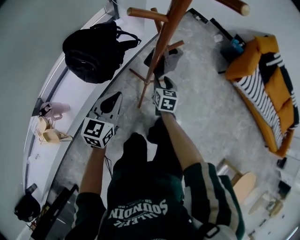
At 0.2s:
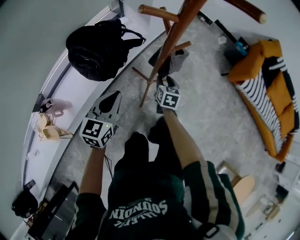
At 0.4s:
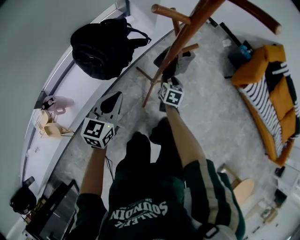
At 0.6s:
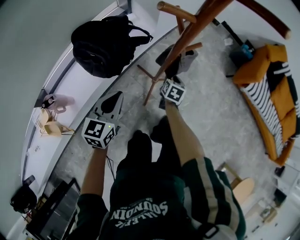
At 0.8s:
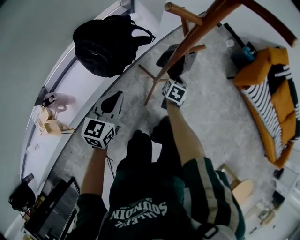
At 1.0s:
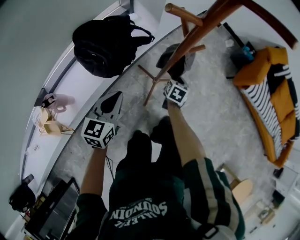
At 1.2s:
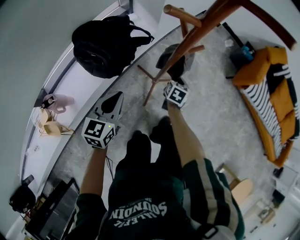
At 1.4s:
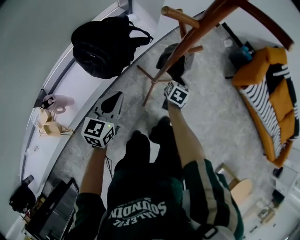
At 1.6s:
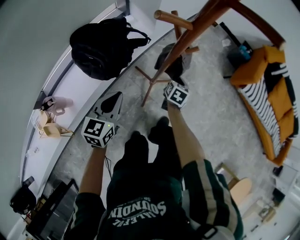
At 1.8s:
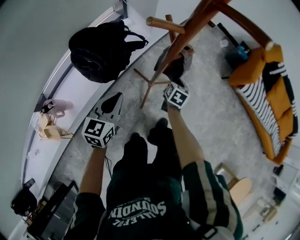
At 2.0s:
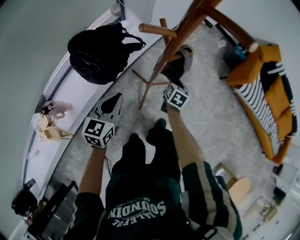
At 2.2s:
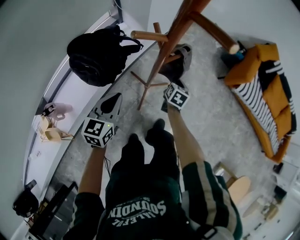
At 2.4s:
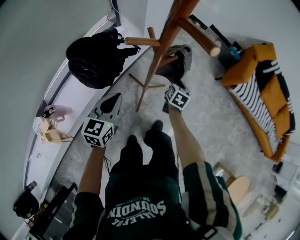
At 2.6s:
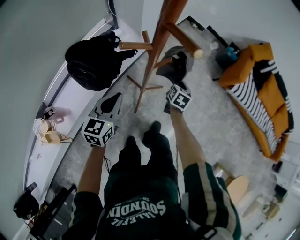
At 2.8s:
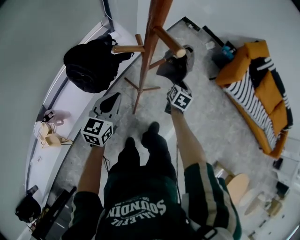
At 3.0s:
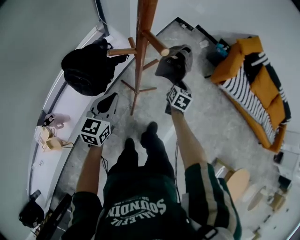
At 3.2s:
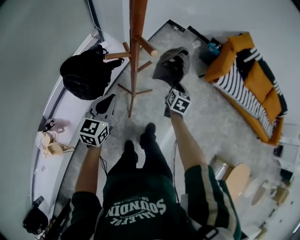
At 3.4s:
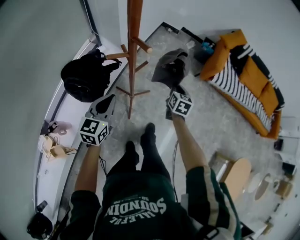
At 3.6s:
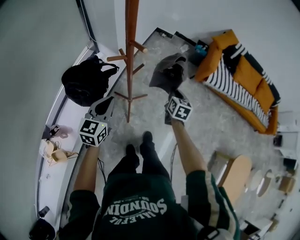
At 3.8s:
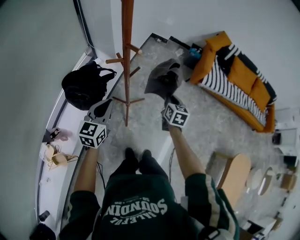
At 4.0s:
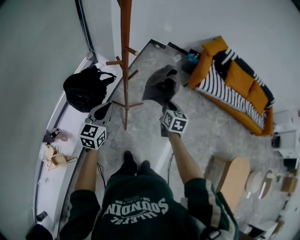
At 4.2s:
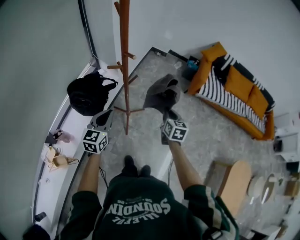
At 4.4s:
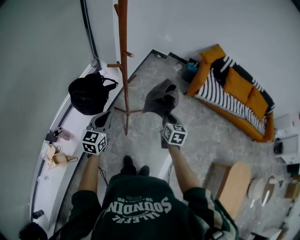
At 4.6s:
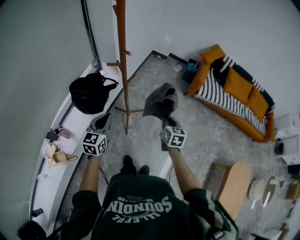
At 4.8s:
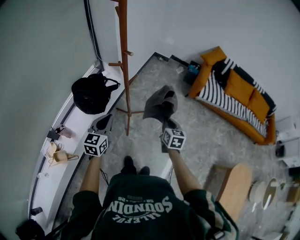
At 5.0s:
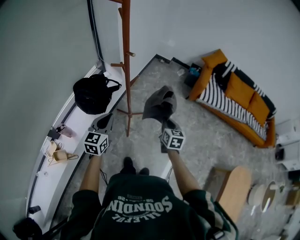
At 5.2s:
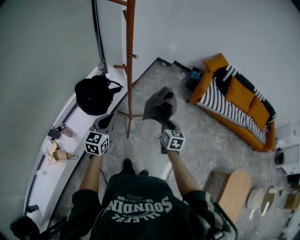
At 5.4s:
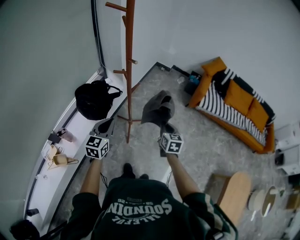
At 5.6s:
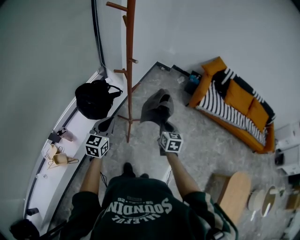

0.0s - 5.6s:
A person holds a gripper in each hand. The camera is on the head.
0.0s - 1.4s: The right gripper changes place by about 5 cm, and closes up.
1.4s - 2.8s: The left gripper is displaced upward, forward and to the right by approximately 15 cm. The right gripper shifts roughly 15 cm upward and to the right.
2.8s - 4.2s: The right gripper is displaced upward and backward by roughly 30 cm. Meanwhile the left gripper heads upward and backward, covering approximately 20 cm.
4.2s - 5.6s: The two grippers go some 5 cm backward.

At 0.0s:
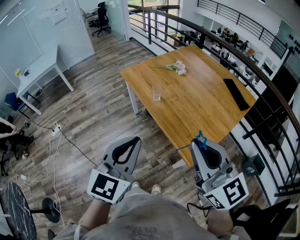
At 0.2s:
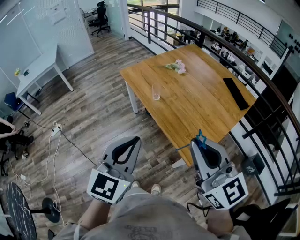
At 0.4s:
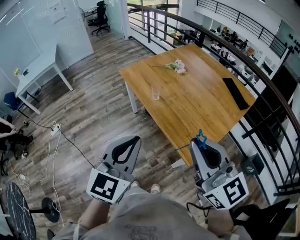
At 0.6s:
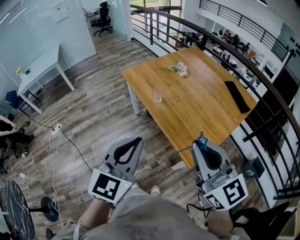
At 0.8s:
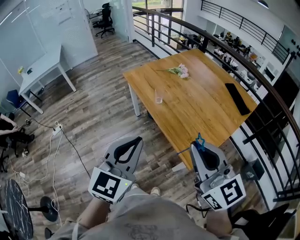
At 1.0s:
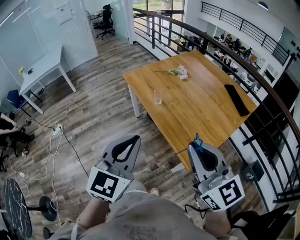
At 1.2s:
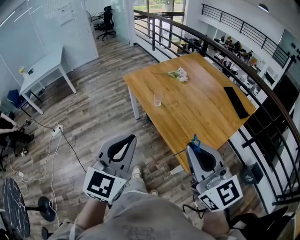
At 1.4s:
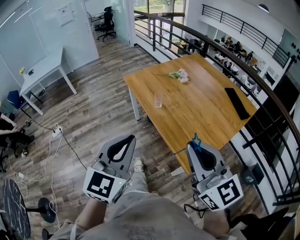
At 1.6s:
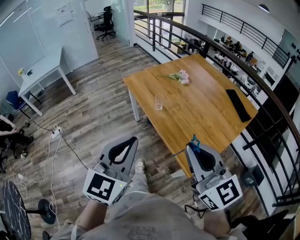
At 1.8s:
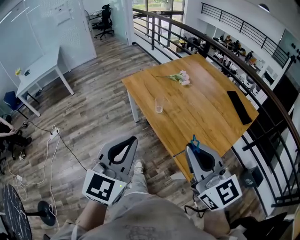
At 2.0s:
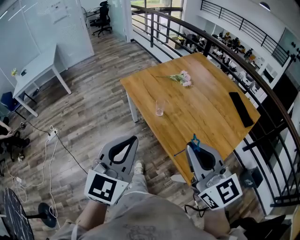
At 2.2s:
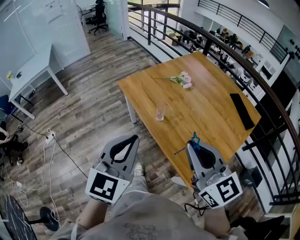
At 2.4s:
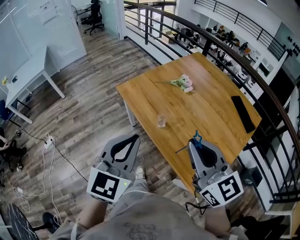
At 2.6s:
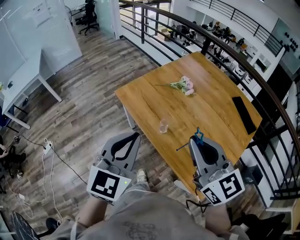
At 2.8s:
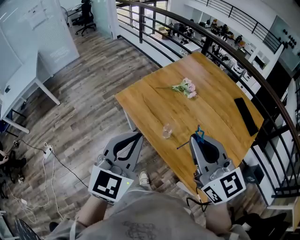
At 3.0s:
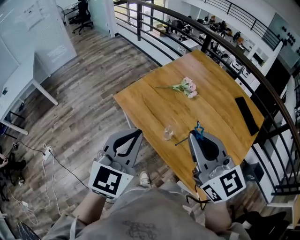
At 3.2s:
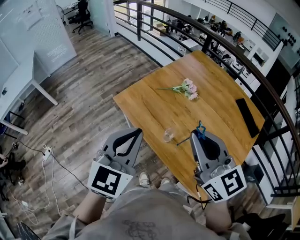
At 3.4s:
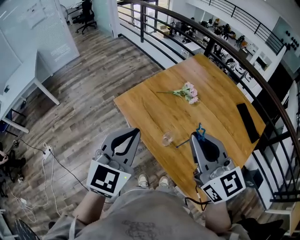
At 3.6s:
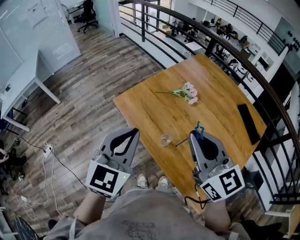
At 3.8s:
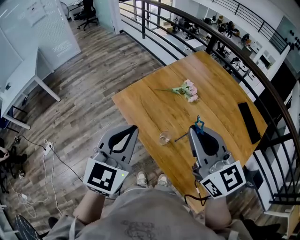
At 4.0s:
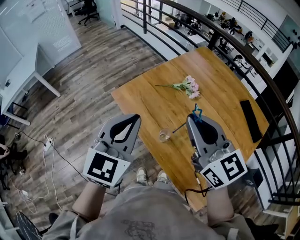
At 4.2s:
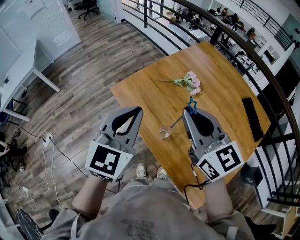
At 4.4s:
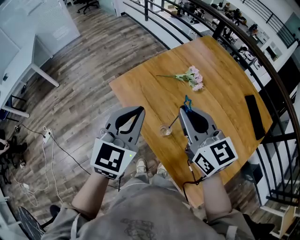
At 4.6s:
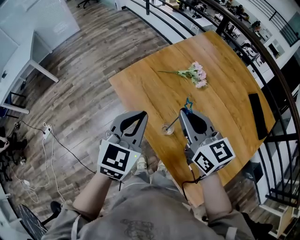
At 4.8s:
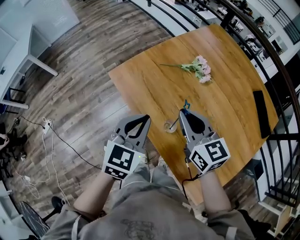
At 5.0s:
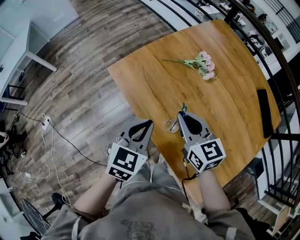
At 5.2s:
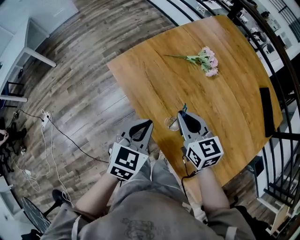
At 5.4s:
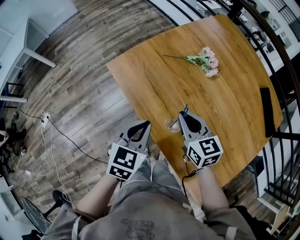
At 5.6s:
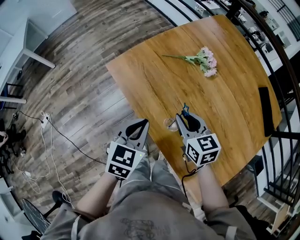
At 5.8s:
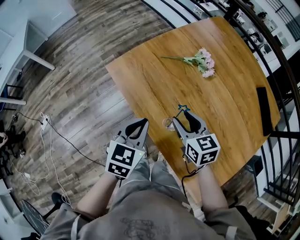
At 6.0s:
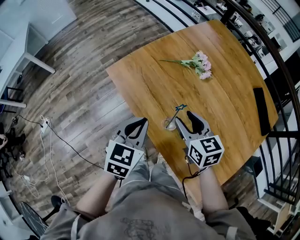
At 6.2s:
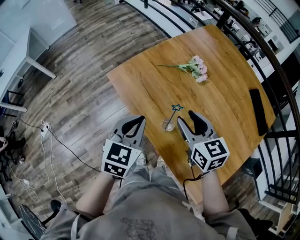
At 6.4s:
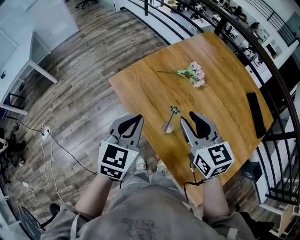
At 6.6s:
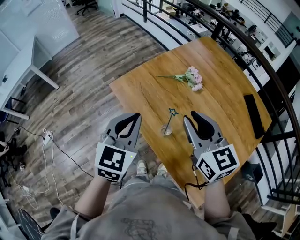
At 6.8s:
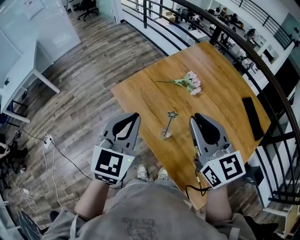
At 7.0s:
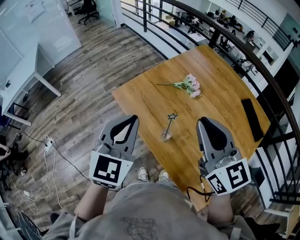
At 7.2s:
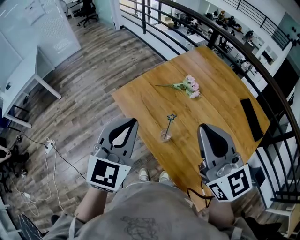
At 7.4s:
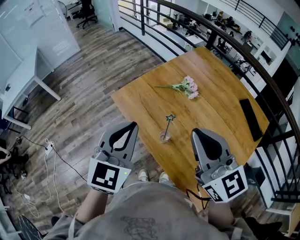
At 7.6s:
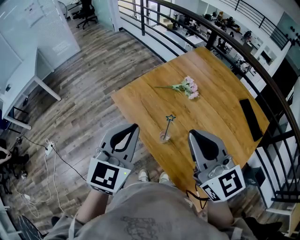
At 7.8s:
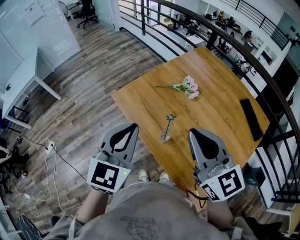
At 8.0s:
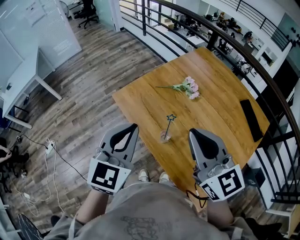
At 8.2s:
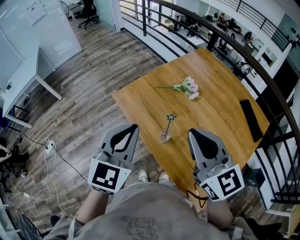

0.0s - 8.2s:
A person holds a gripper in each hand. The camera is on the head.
0.0s - 1.6s: There are only small adjustments of the grippers.
1.6s - 3.2s: Both grippers travel together forward, roughly 20 cm.
3.2s - 5.0s: The left gripper is displaced downward by roughly 15 cm, and rotates about 20 degrees. Meanwhile the right gripper heads downward and forward, covering some 20 cm, and turns by some 20 degrees.
5.0s - 6.6s: The two grippers go some 10 cm upward. The right gripper opens up.
6.6s - 8.2s: The right gripper shifts roughly 10 cm upward and backward, and closes its fingers. The left gripper heads upward, covering some 5 cm.

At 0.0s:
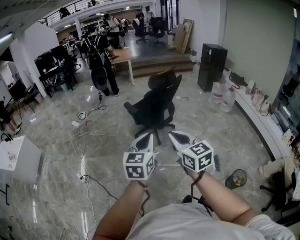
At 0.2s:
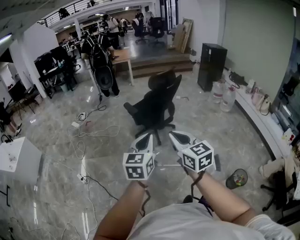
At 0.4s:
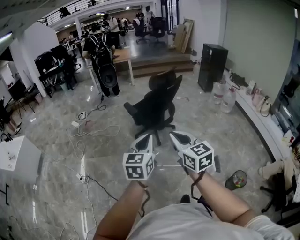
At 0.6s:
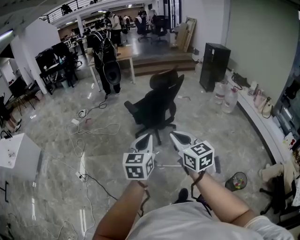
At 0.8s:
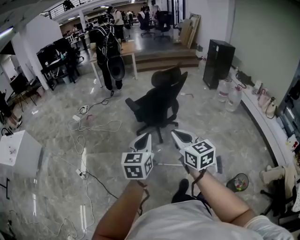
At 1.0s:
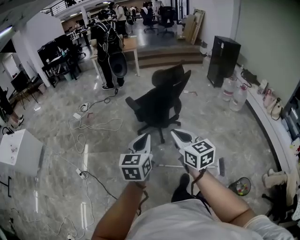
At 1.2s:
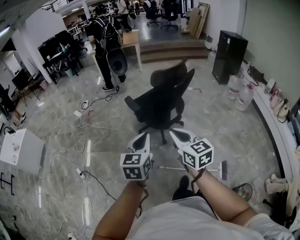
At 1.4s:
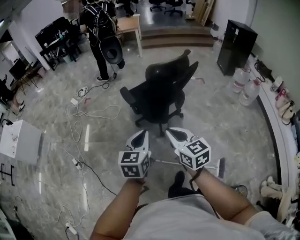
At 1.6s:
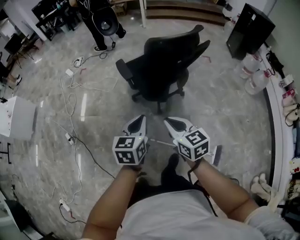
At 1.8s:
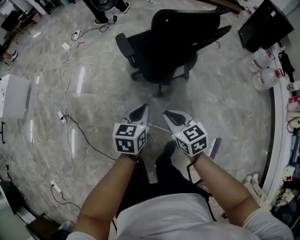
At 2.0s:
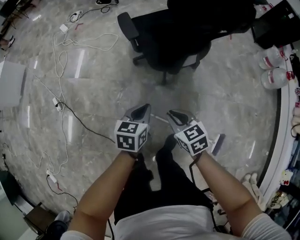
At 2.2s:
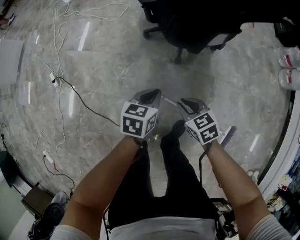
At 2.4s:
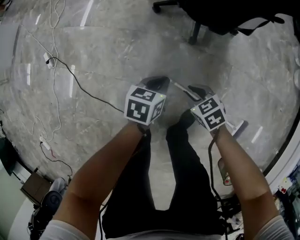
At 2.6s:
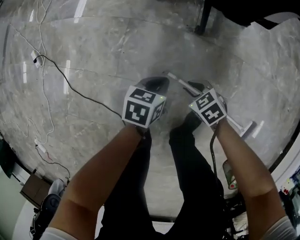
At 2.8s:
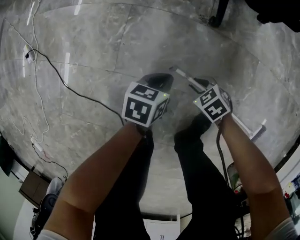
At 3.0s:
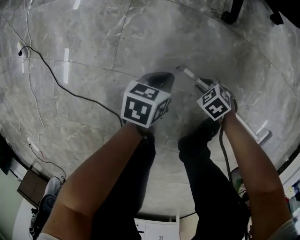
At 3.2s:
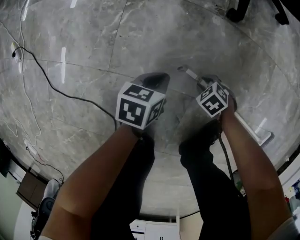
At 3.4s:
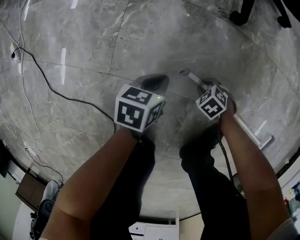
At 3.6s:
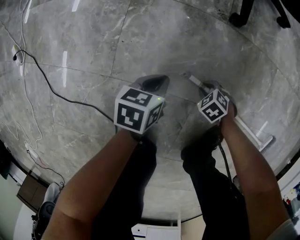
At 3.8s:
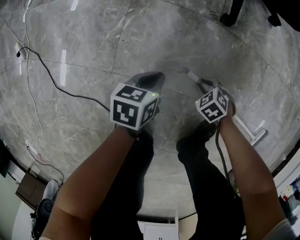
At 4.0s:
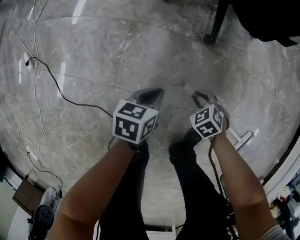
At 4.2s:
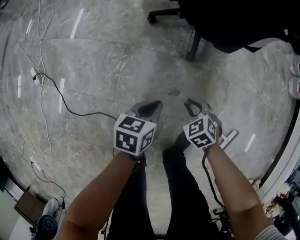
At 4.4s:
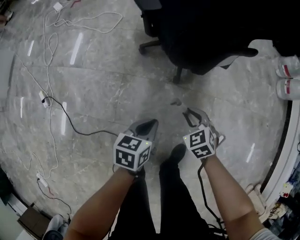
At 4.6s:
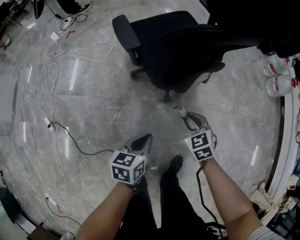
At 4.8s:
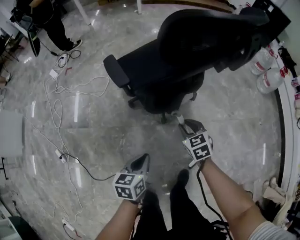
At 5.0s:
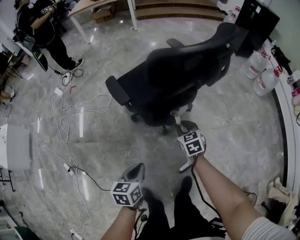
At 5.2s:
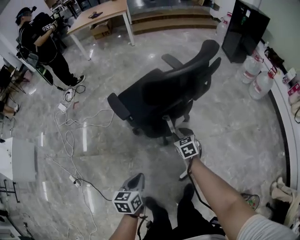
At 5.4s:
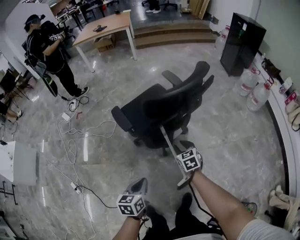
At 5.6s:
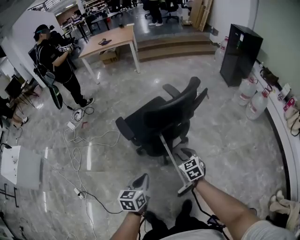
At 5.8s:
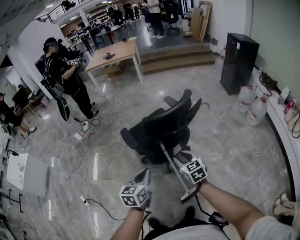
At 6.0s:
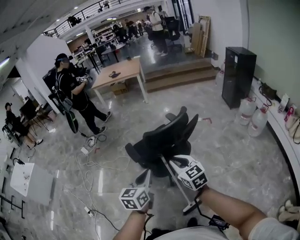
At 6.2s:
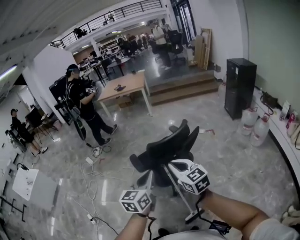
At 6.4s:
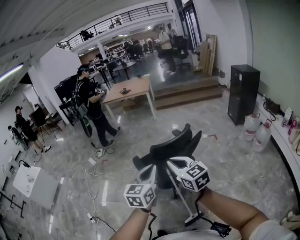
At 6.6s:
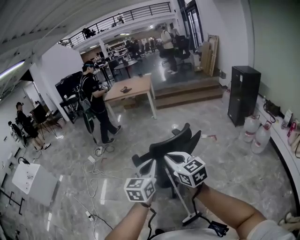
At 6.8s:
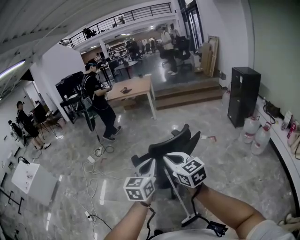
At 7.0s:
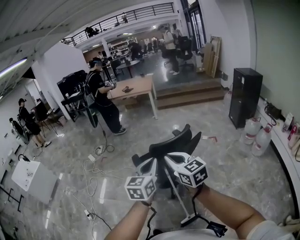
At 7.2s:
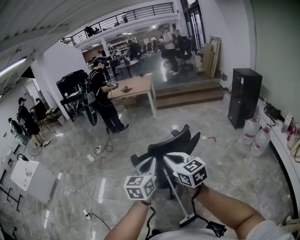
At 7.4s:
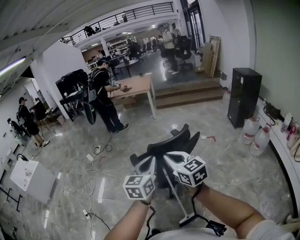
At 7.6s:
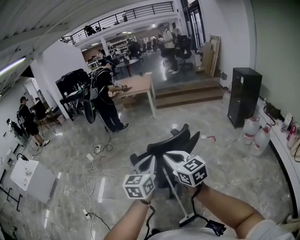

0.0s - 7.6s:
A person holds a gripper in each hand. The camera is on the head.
0.0s - 1.6s: The pair of grippers is taken forward, approximately 40 cm. Both grippers travel together downward, roughly 25 cm. The right gripper turns by some 20 degrees. The left gripper swivels roughly 20 degrees.
1.6s - 3.0s: The two grippers go some 1 m downward. The right gripper tips its fingers downward by roughly 50 degrees; the left gripper swivels roughly 40 degrees.
3.0s - 4.6s: Both grippers move upward, approximately 50 cm. The right gripper swivels approximately 50 degrees.
4.6s - 6.0s: Both grippers move upward, approximately 50 cm. The left gripper turns by some 30 degrees; the right gripper tips its fingers upward by some 30 degrees.
6.0s - 7.6s: The two grippers go some 15 cm upward.

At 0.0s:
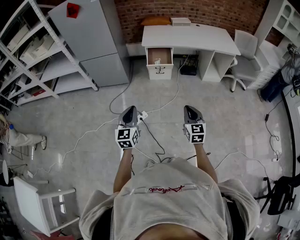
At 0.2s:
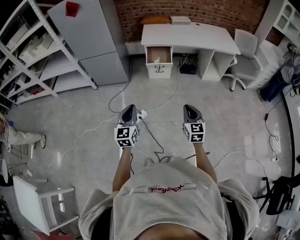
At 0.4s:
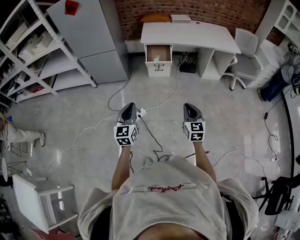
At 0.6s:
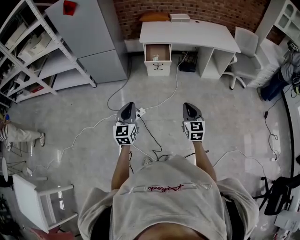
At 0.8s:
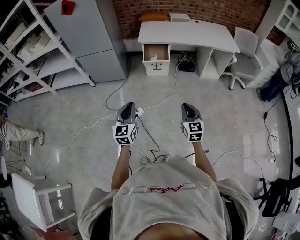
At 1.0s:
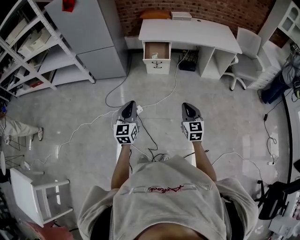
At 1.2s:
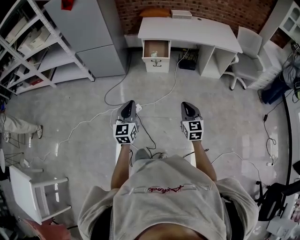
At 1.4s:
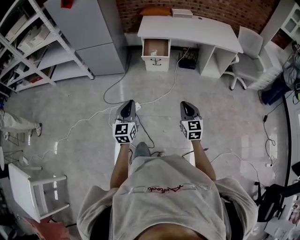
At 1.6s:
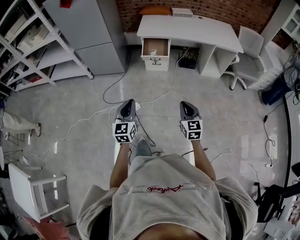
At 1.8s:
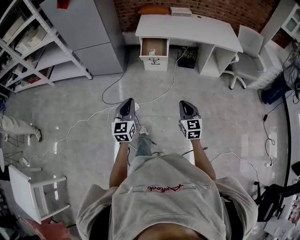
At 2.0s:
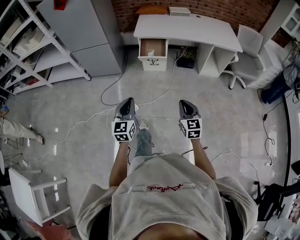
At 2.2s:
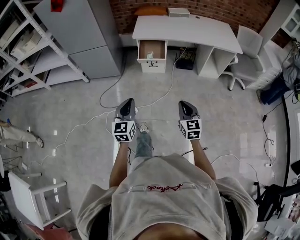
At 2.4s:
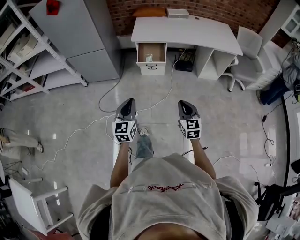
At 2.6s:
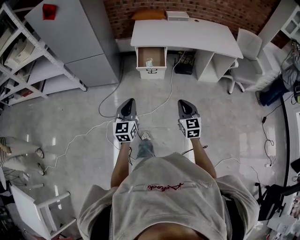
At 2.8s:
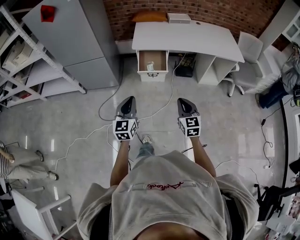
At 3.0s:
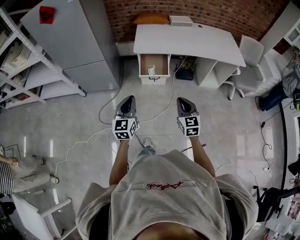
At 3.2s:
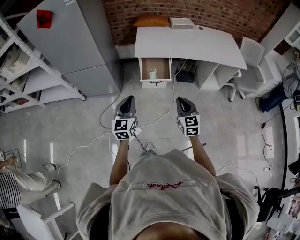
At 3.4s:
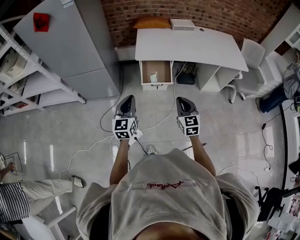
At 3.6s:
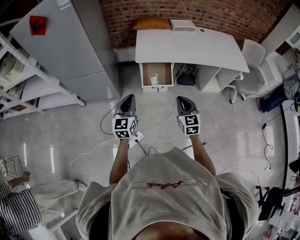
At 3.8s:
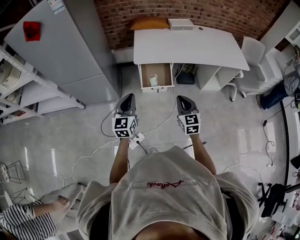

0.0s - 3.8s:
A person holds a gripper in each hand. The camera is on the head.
0.0s - 1.2s: The grippers both shift to the right by some 5 cm.
1.2s - 2.6s: The grippers both shift forward by approximately 20 cm.
2.6s - 3.8s: The right gripper travels forward and to the left by about 25 cm. The left gripper is displaced forward by some 25 cm.
